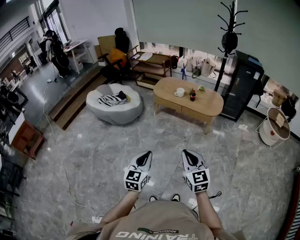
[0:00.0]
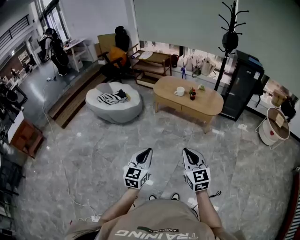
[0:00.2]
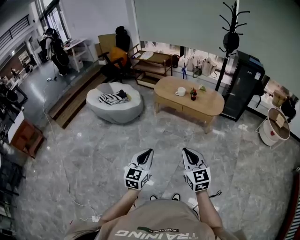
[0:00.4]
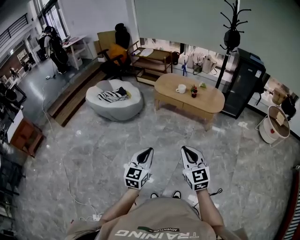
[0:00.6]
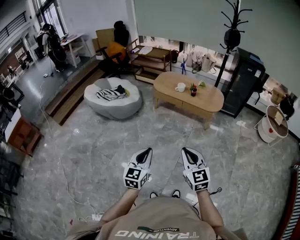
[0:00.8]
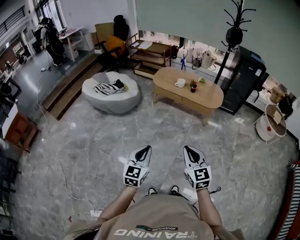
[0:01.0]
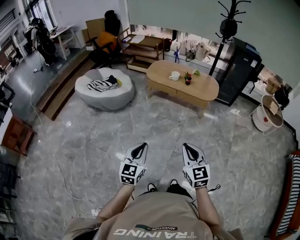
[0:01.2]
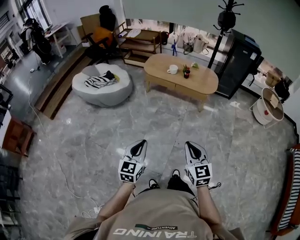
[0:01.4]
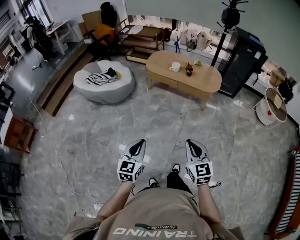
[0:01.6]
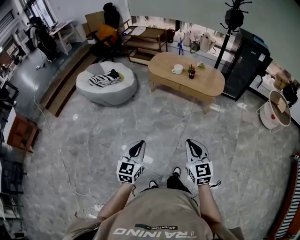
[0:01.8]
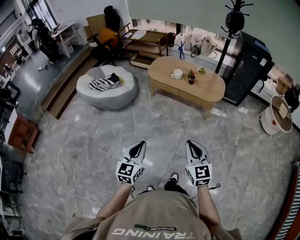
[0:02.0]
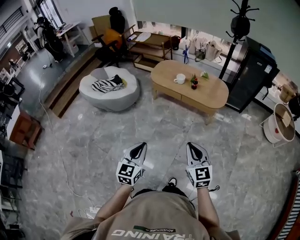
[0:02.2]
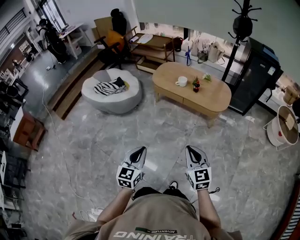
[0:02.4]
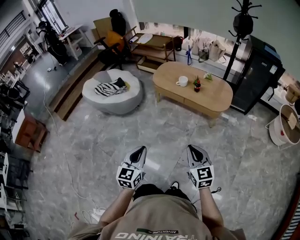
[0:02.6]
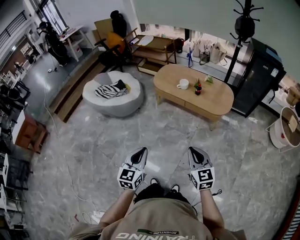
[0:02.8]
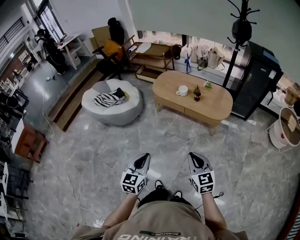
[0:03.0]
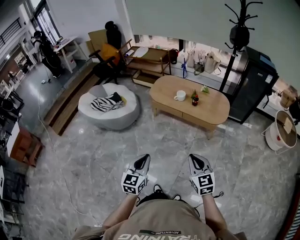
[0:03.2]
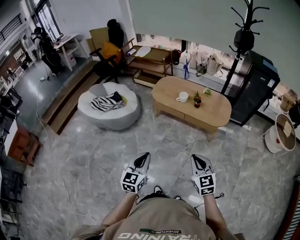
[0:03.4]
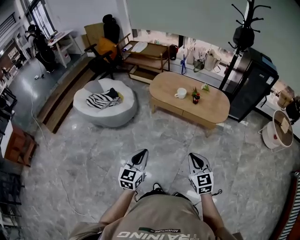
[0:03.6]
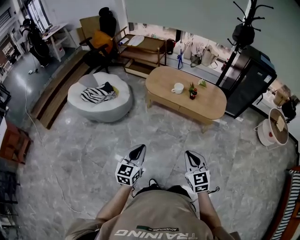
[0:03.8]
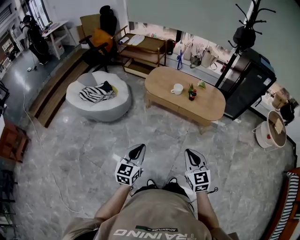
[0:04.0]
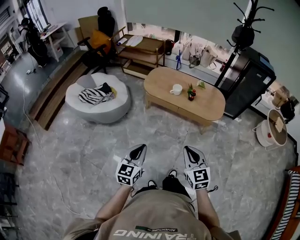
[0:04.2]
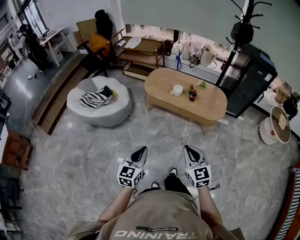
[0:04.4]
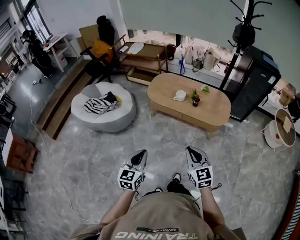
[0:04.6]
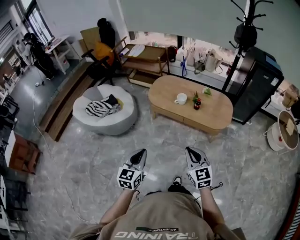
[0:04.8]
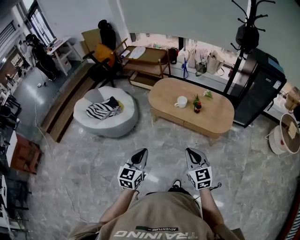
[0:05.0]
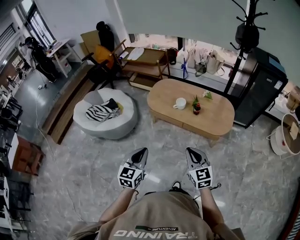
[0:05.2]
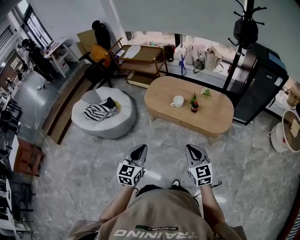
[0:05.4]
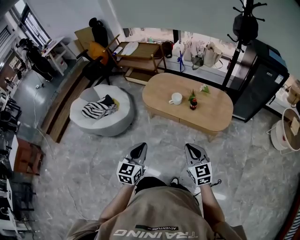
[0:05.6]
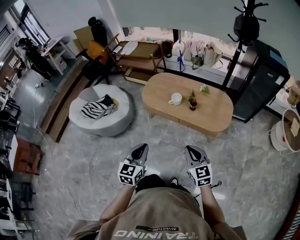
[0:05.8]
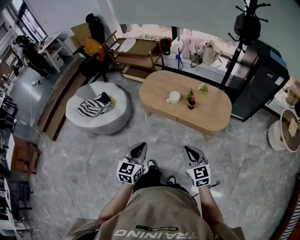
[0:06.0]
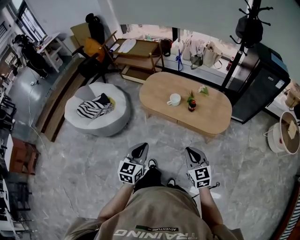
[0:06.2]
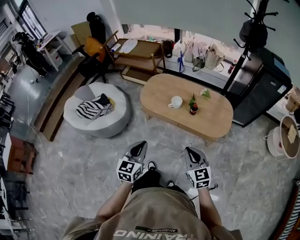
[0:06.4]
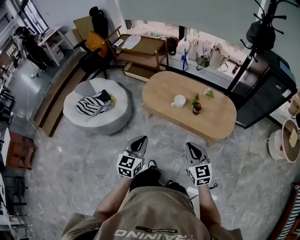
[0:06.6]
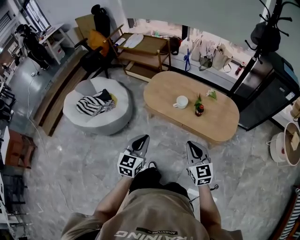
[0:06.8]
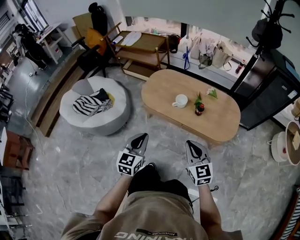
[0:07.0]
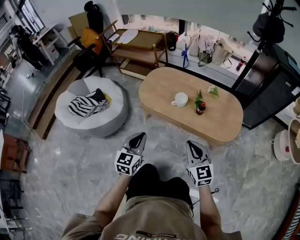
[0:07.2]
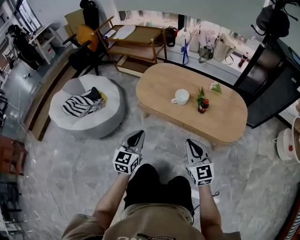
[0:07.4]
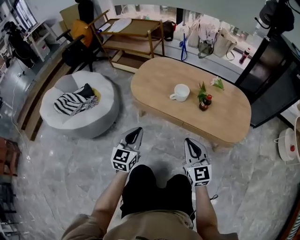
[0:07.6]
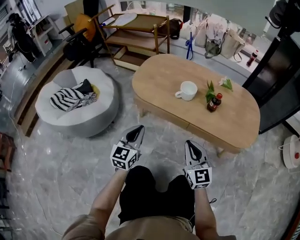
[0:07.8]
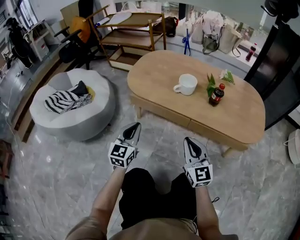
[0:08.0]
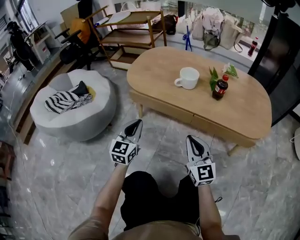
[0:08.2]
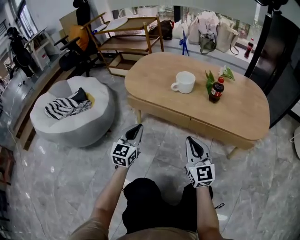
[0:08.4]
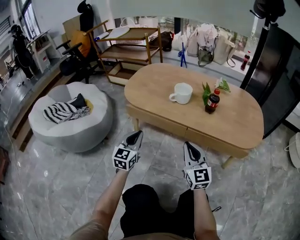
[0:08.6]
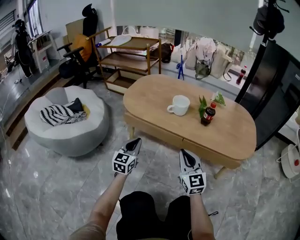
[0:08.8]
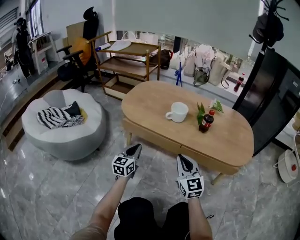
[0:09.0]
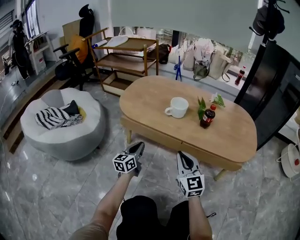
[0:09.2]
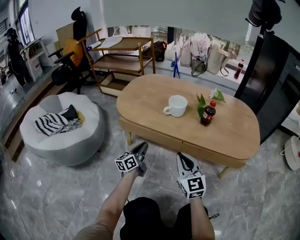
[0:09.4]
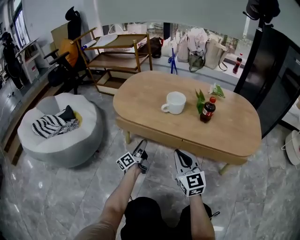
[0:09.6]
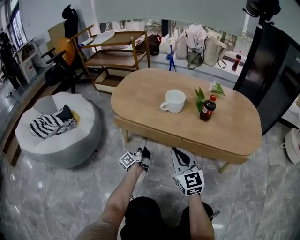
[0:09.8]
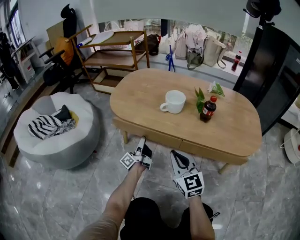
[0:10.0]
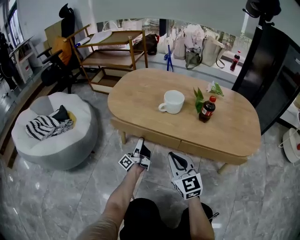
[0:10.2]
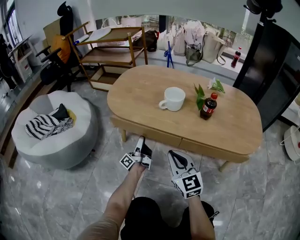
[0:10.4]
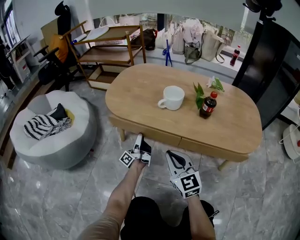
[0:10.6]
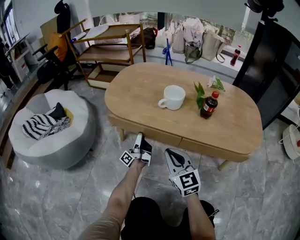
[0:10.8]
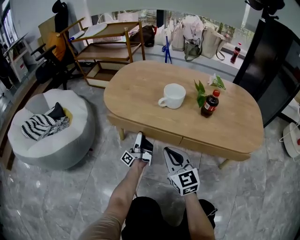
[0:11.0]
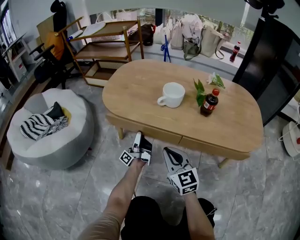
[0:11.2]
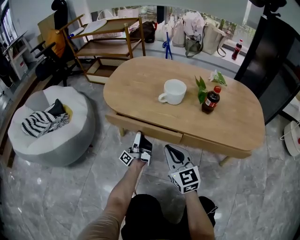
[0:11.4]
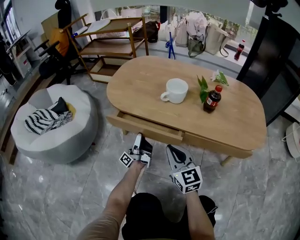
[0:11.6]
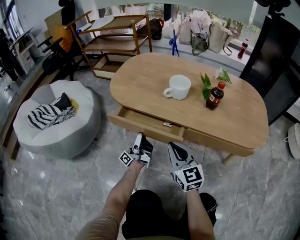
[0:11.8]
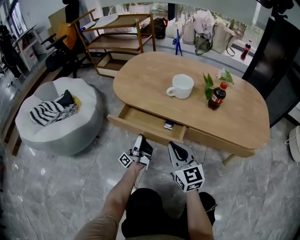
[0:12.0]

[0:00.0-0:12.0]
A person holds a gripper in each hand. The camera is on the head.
0.0 to 1.6 s: The left gripper goes roughly 5 cm to the left, while the right gripper is displaced downward by roughly 5 cm.
1.6 to 3.0 s: Both grippers travel together forward and to the right, roughly 20 cm.
3.0 to 4.4 s: Both grippers travel together forward and to the left, roughly 15 cm.
4.4 to 6.0 s: Both grippers travel together forward and to the right, roughly 20 cm.
6.0 to 7.6 s: Both grippers travel together downward and forward, about 35 cm.
7.6 to 9.0 s: Both grippers travel together downward, approximately 20 cm.
9.0 to 10.4 s: The right gripper moves roughly 5 cm; the left gripper travels downward and forward by approximately 15 cm, rolls counterclockwise, seen from behind, by approximately 70 degrees, and opens its fingers.
10.4 to 12.0 s: The left gripper travels backward by some 5 cm.

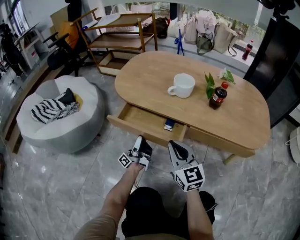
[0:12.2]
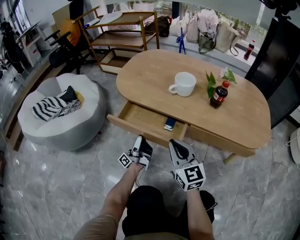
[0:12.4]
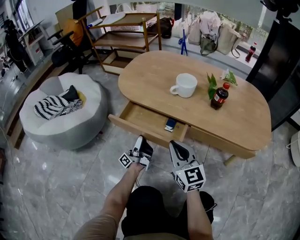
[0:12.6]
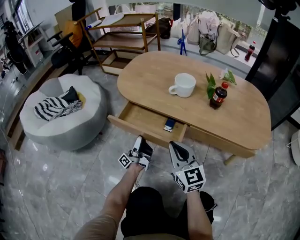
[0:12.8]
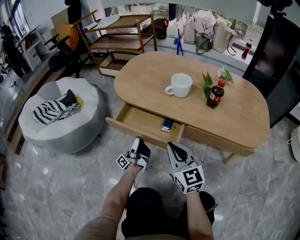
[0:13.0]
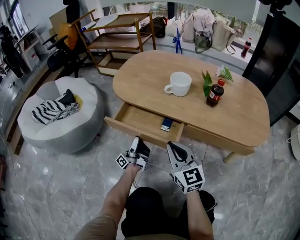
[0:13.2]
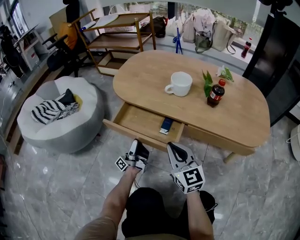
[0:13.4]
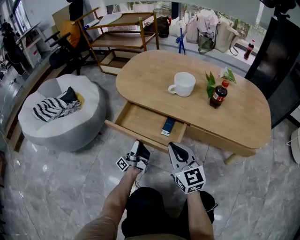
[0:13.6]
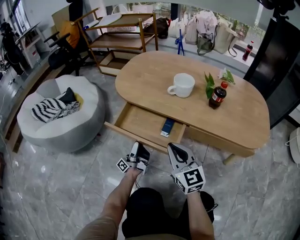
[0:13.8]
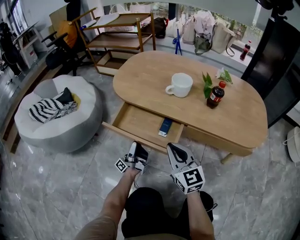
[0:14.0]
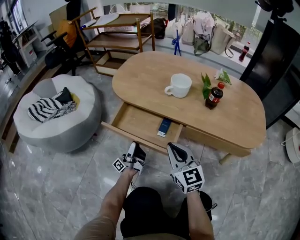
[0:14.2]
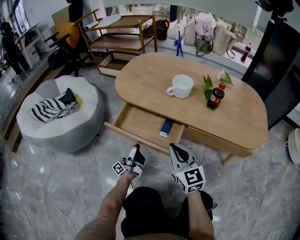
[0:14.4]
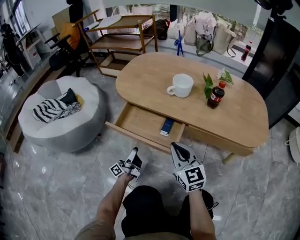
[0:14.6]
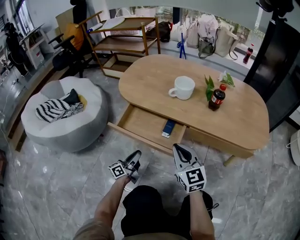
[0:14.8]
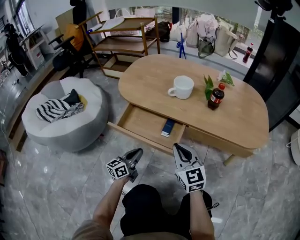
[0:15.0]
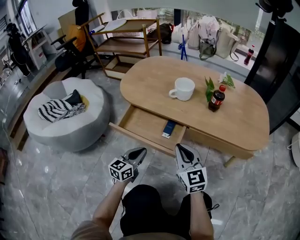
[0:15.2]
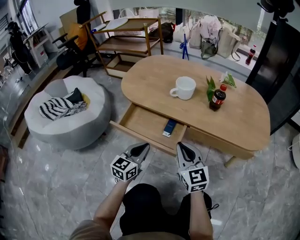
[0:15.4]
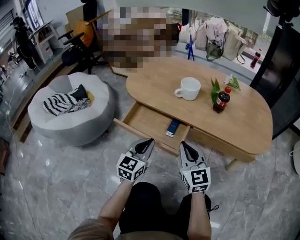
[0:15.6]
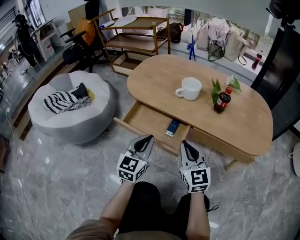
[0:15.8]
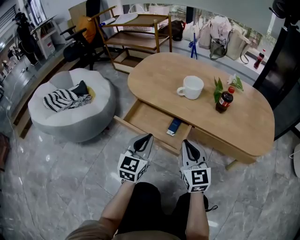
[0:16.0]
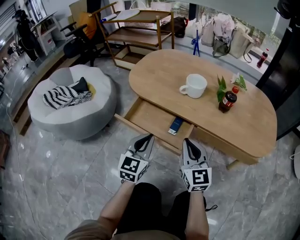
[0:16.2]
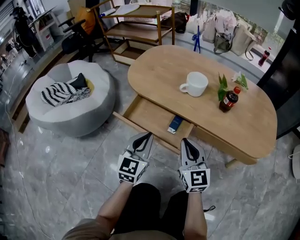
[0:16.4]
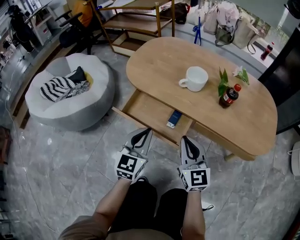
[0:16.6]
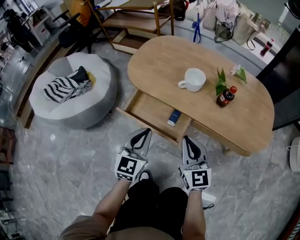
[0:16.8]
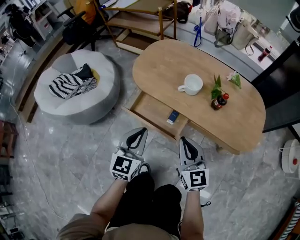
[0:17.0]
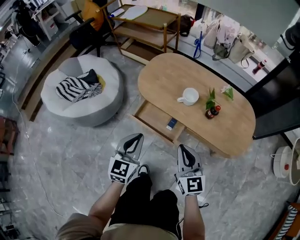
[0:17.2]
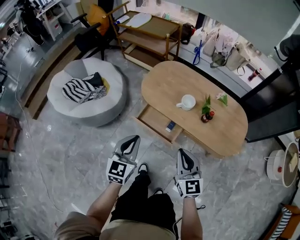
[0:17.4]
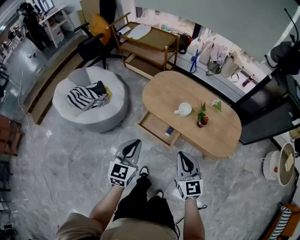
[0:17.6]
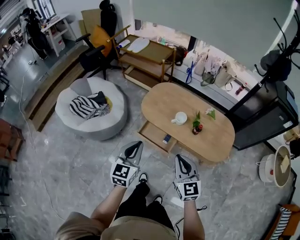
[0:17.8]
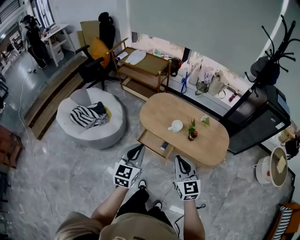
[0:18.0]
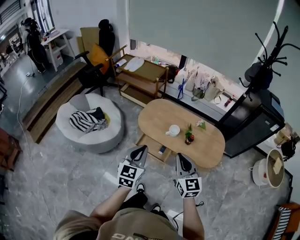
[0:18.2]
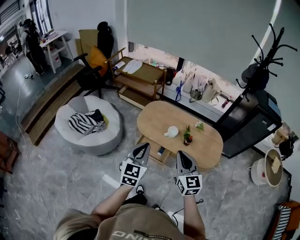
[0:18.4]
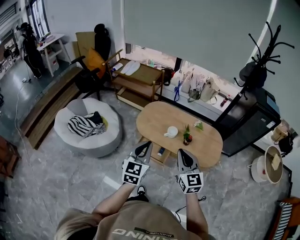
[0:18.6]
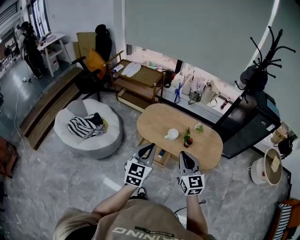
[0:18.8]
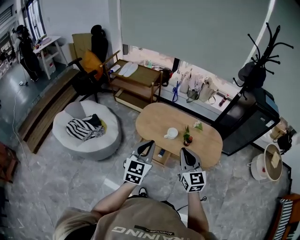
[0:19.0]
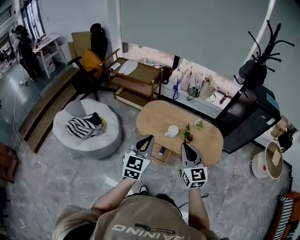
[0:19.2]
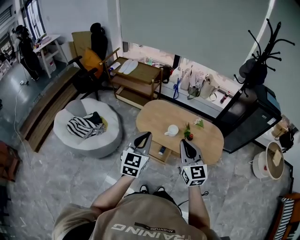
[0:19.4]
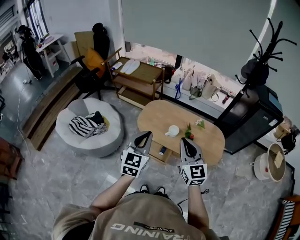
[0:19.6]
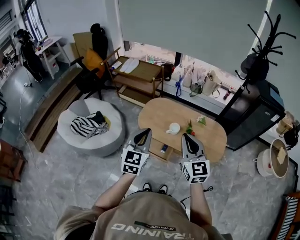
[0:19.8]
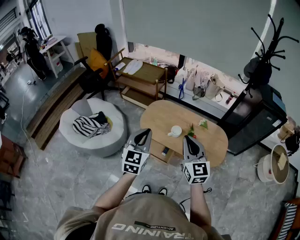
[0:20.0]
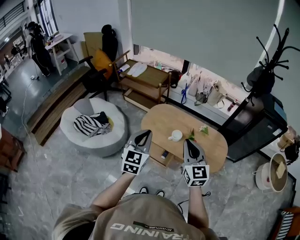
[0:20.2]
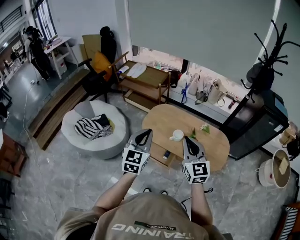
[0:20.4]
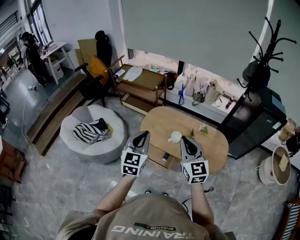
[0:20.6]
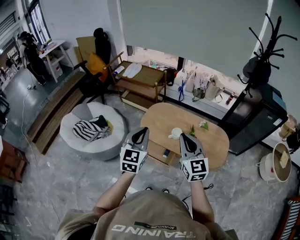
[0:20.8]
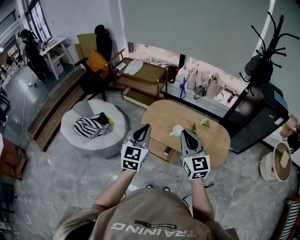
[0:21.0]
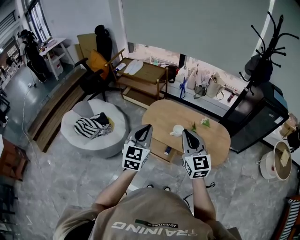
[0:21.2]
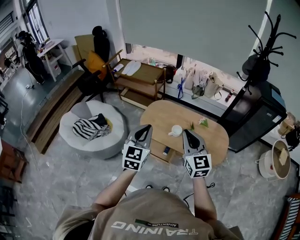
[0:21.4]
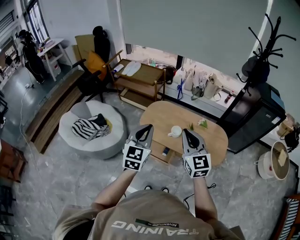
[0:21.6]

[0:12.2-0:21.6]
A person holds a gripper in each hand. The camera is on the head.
12.2 to 13.8 s: The grippers move only a little.
13.8 to 15.4 s: The left gripper travels upward, to the right and backward by approximately 15 cm, tilts its fingers about 50 degrees downward, and closes up.
15.4 to 17.0 s: Both grippers travel together upward, about 20 cm.
17.0 to 18.4 s: The grippers both shift upward by roughly 40 cm.
18.4 to 20.0 s: The right gripper goes about 10 cm forward and upward. The left gripper heads forward, covering roughly 5 cm.
20.0 to 21.6 s: The grippers make only small movements.

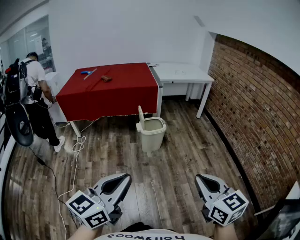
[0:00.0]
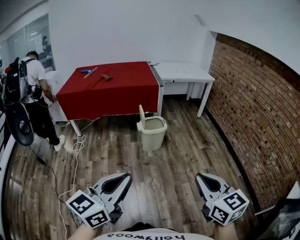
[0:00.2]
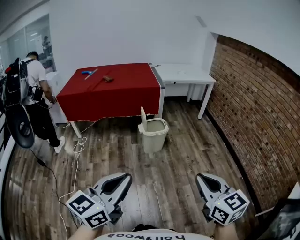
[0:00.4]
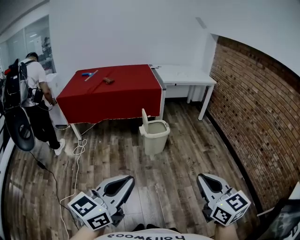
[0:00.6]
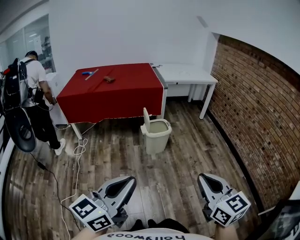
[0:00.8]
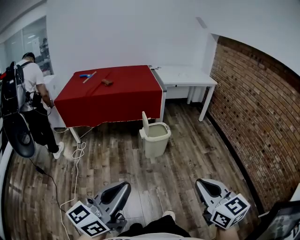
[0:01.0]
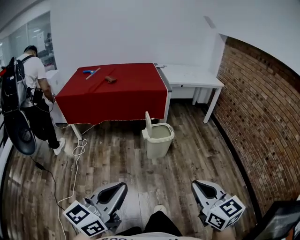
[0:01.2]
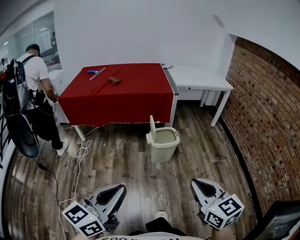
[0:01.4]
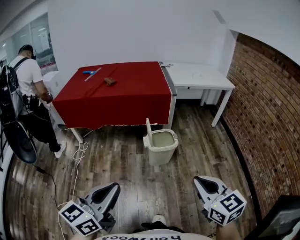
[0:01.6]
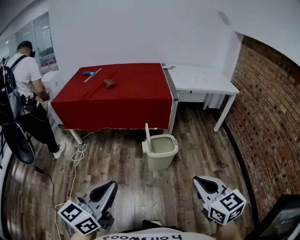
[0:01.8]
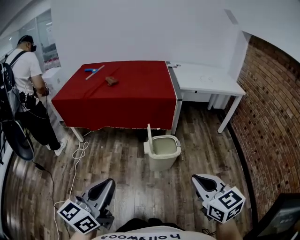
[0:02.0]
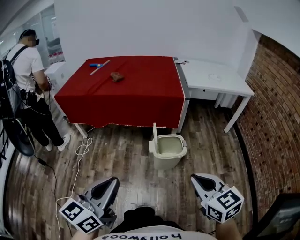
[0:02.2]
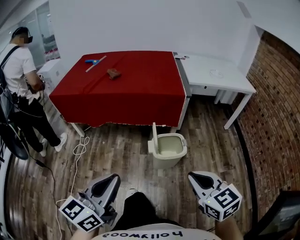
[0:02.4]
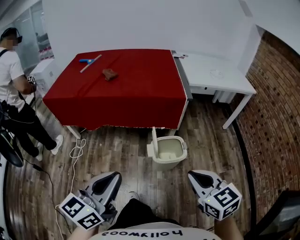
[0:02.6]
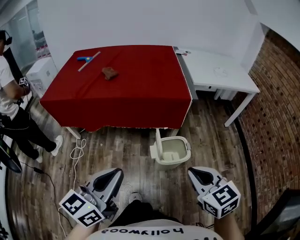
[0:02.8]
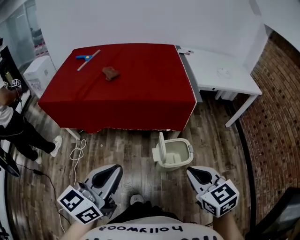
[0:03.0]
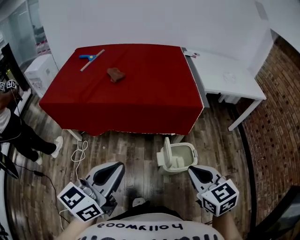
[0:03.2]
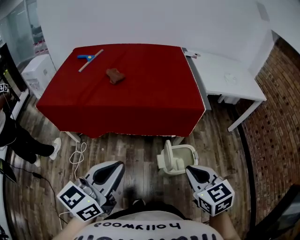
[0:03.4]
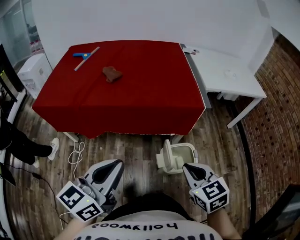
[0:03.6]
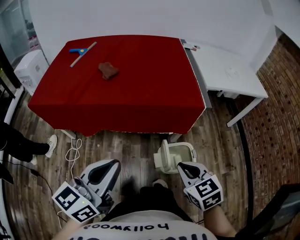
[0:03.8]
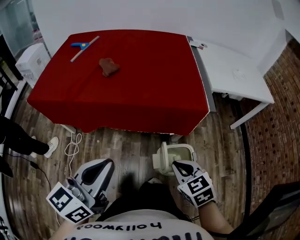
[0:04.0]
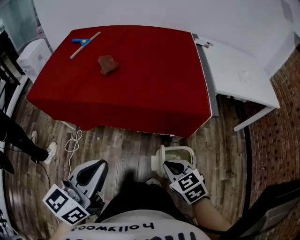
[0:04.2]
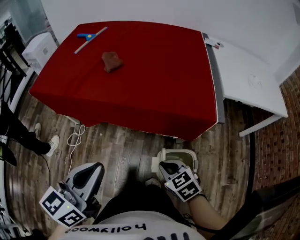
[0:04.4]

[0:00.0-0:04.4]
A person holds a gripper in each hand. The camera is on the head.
0.0 to 1.4 s: The two grippers go roughly 20 cm forward and to the left.
1.4 to 3.0 s: Both grippers are carried forward, approximately 40 cm.
3.0 to 4.4 s: The right gripper shifts roughly 30 cm forward and downward, and swivels about 30 degrees, while the left gripper heads forward, covering roughly 20 cm.
